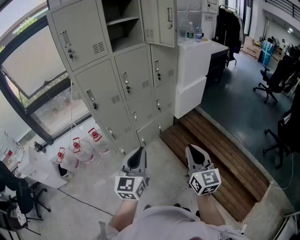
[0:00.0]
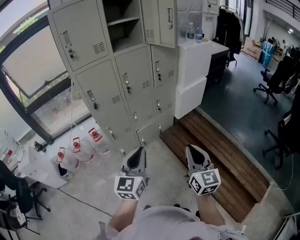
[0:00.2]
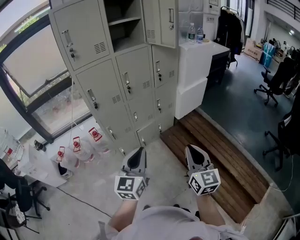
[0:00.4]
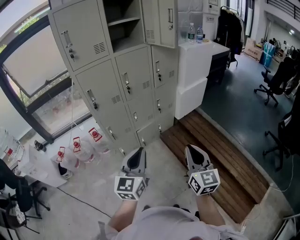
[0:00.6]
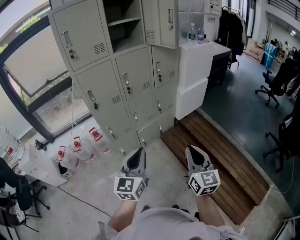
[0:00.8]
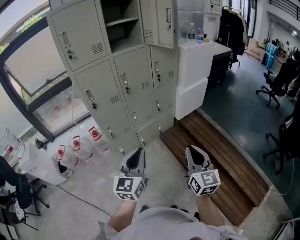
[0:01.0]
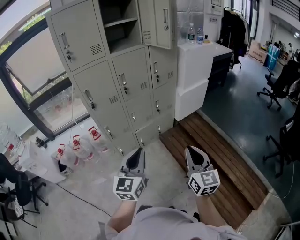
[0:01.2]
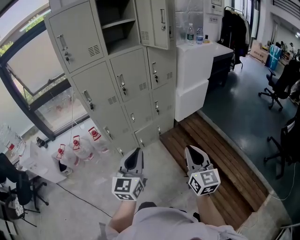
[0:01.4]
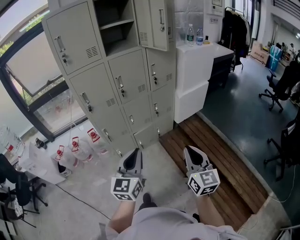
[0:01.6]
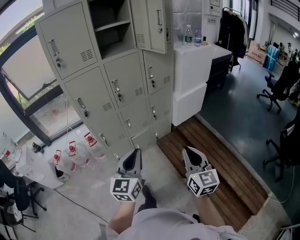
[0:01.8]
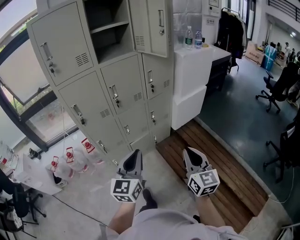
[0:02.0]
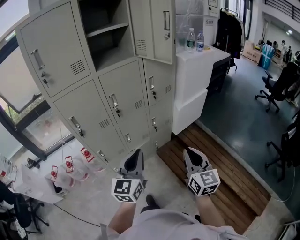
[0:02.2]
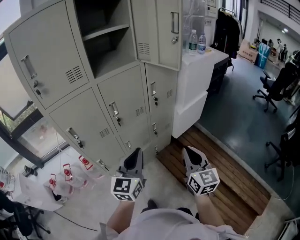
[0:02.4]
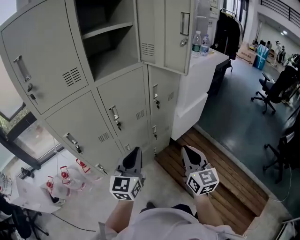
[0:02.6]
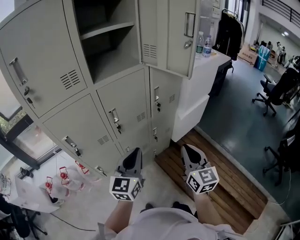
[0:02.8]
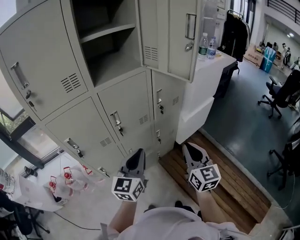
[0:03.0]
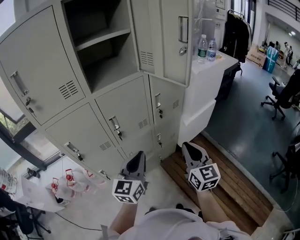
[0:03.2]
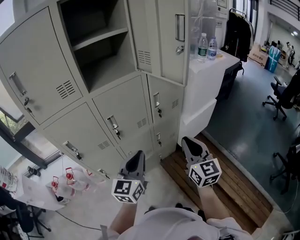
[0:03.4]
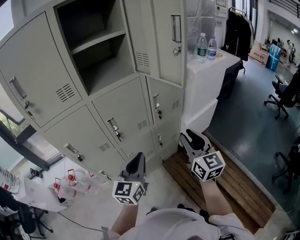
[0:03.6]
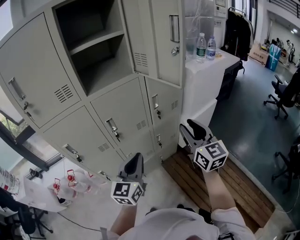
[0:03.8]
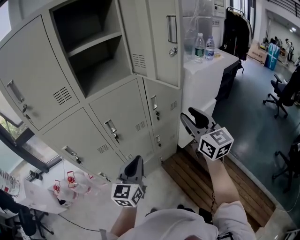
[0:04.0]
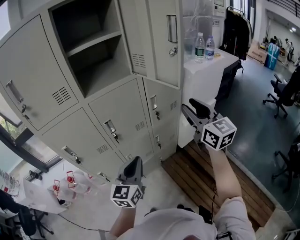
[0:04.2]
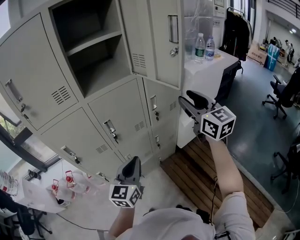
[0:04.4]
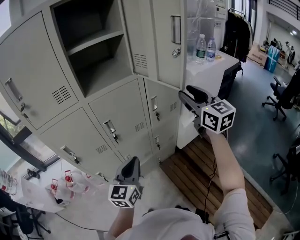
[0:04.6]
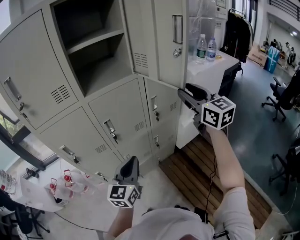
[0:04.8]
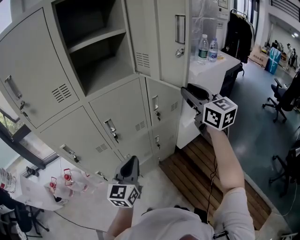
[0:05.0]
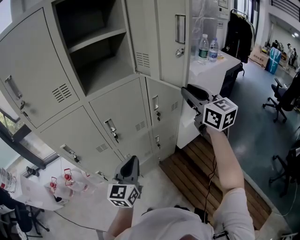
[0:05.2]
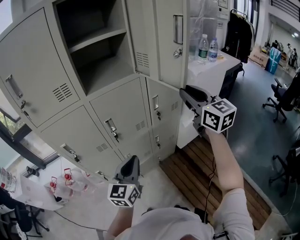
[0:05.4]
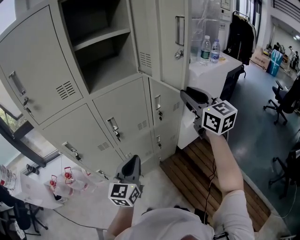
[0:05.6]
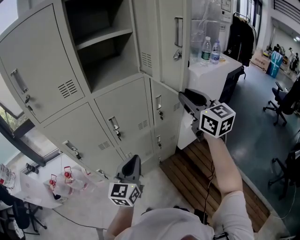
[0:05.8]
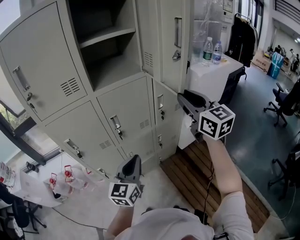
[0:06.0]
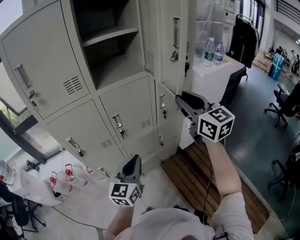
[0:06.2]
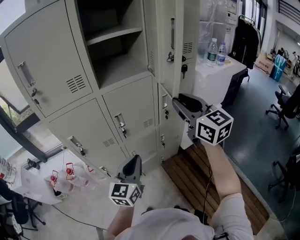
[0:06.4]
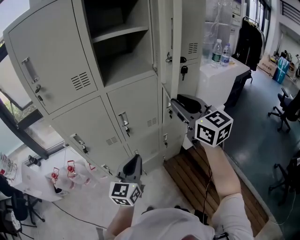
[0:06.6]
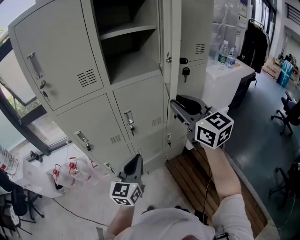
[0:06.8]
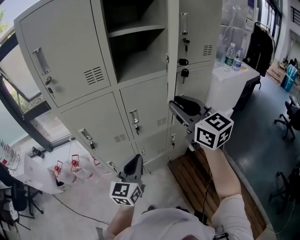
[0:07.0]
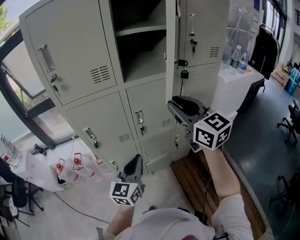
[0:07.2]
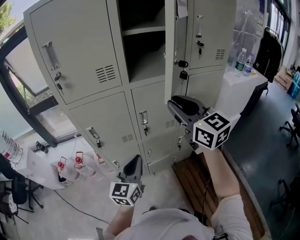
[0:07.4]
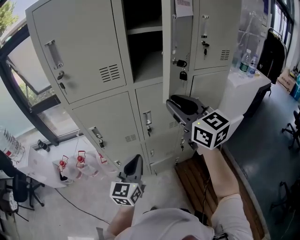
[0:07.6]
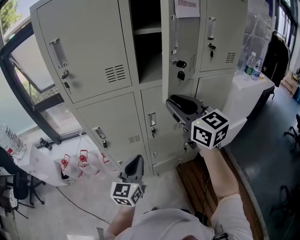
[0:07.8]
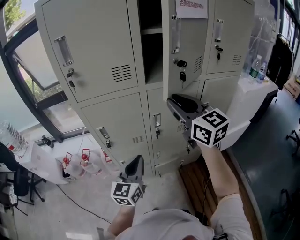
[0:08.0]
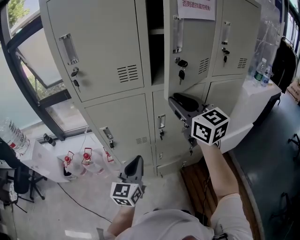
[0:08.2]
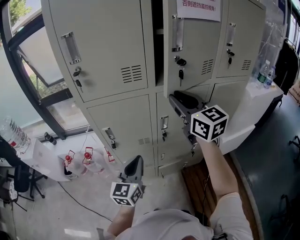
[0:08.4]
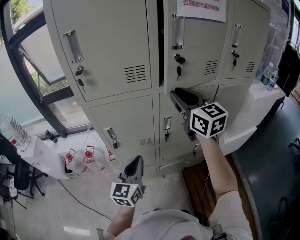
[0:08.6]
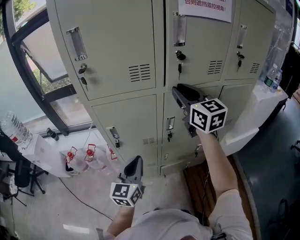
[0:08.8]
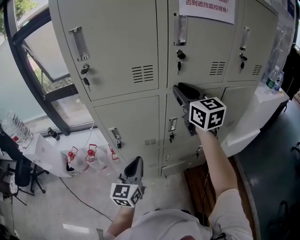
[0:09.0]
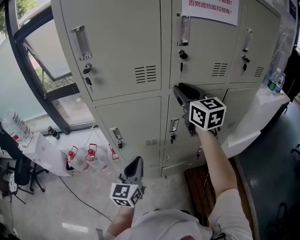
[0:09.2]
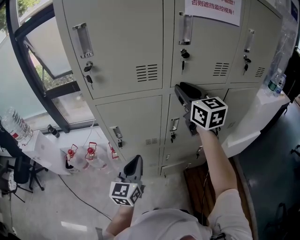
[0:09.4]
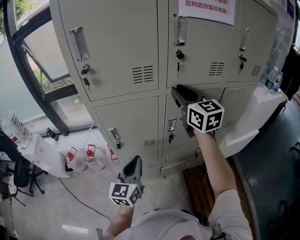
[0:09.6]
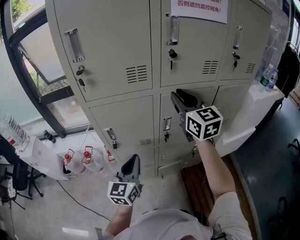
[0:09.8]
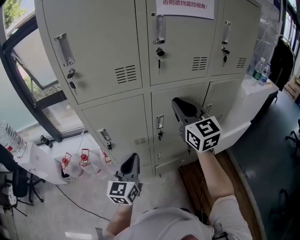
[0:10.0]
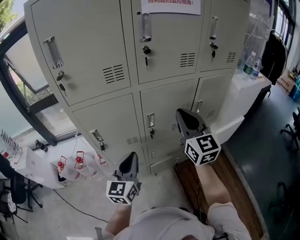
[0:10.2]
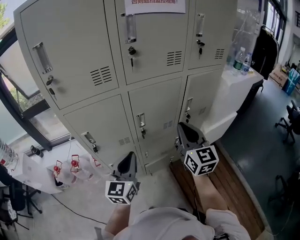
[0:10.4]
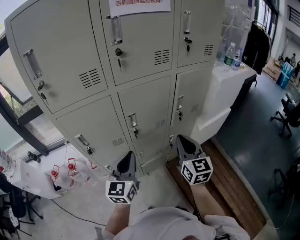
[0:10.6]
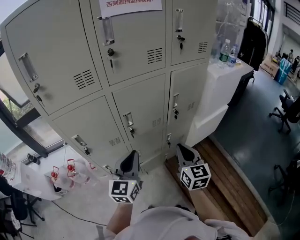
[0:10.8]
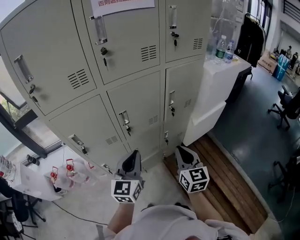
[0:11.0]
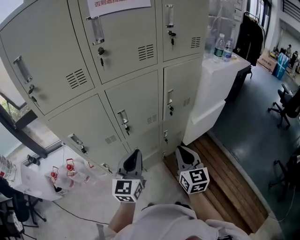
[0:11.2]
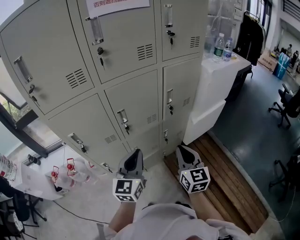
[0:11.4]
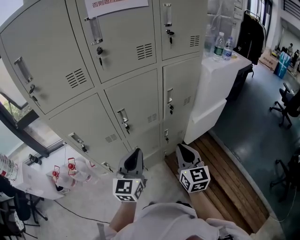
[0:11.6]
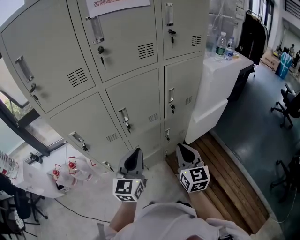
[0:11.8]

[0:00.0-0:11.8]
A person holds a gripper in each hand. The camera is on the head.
0:00.0 to 0:01.4: The grippers both shift to the right by roughly 5 cm.
0:01.4 to 0:03.0: Both grippers travel together forward, about 35 cm.
0:03.0 to 0:04.4: The right gripper travels upward and forward by approximately 20 cm, and opens.
0:04.4 to 0:06.0: The right gripper goes roughly 5 cm to the left.
0:06.0 to 0:07.4: The left gripper moves to the left, about 10 cm. The right gripper moves to the left, roughly 20 cm.
0:07.4 to 0:08.8: The left gripper shifts roughly 10 cm to the left and forward. The right gripper shifts roughly 15 cm forward and to the left.
0:08.8 to 0:10.4: The left gripper goes approximately 10 cm to the right, while the right gripper goes approximately 20 cm backward, to the right and downward, and swivels roughly 20 degrees.
0:10.4 to 0:11.8: The left gripper heads to the right, covering roughly 10 cm. Meanwhile the right gripper heads downward, backward and to the right, covering roughly 15 cm.

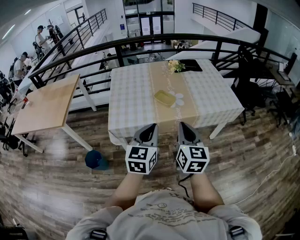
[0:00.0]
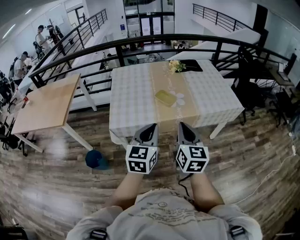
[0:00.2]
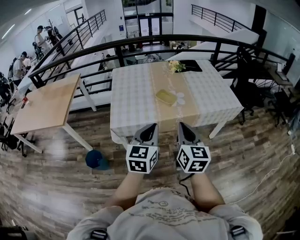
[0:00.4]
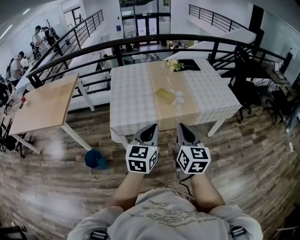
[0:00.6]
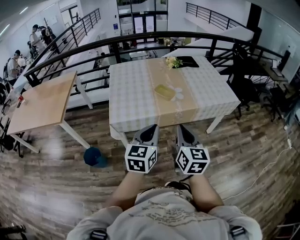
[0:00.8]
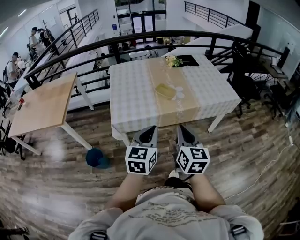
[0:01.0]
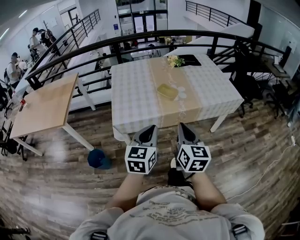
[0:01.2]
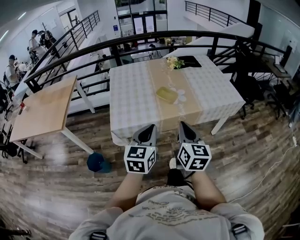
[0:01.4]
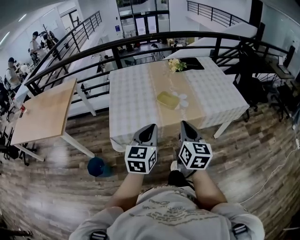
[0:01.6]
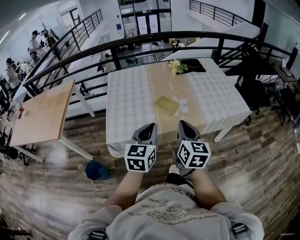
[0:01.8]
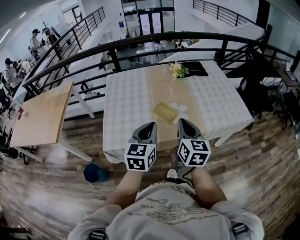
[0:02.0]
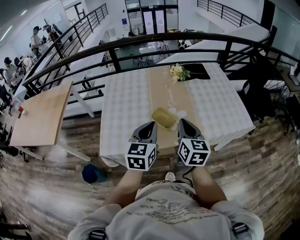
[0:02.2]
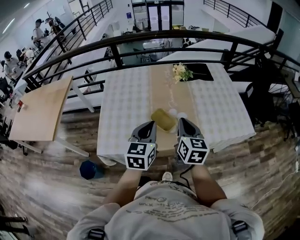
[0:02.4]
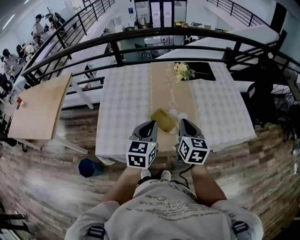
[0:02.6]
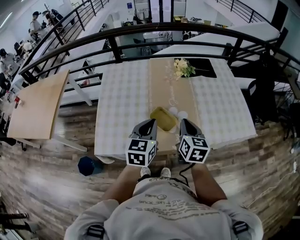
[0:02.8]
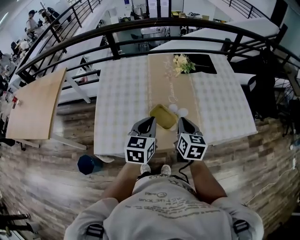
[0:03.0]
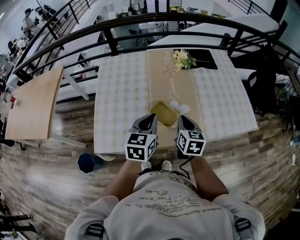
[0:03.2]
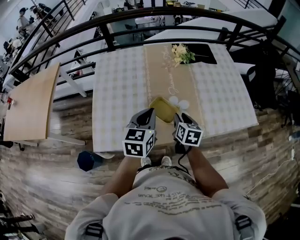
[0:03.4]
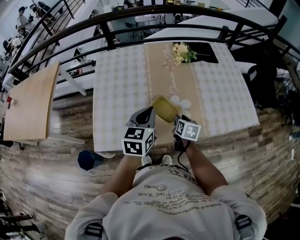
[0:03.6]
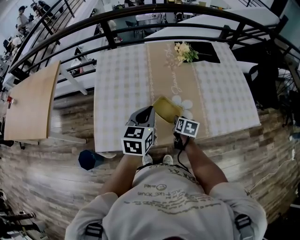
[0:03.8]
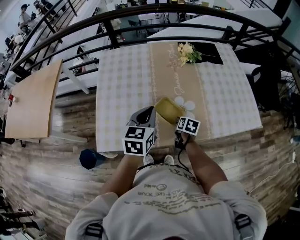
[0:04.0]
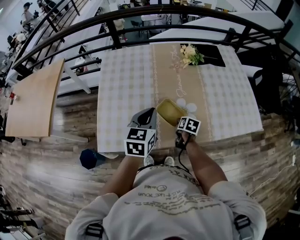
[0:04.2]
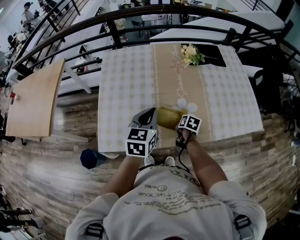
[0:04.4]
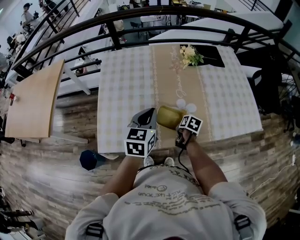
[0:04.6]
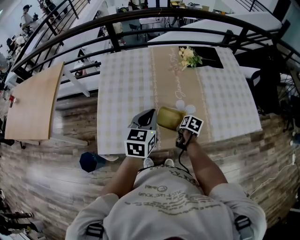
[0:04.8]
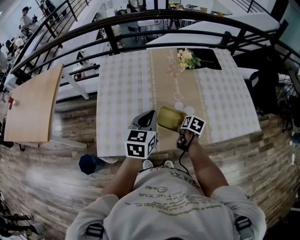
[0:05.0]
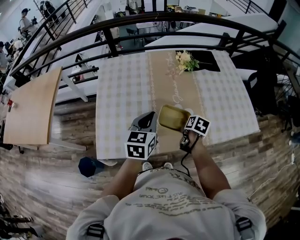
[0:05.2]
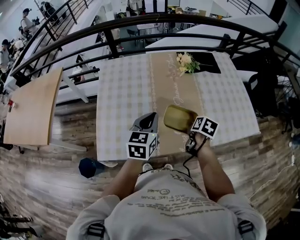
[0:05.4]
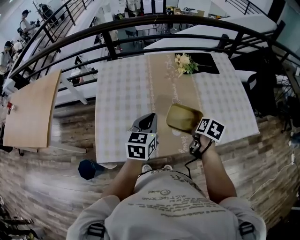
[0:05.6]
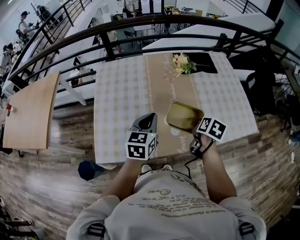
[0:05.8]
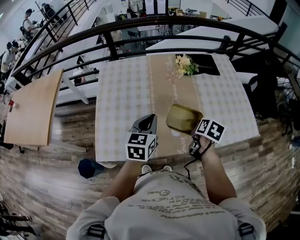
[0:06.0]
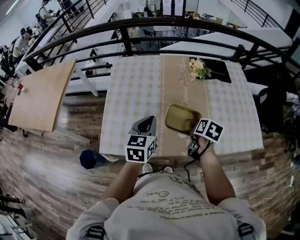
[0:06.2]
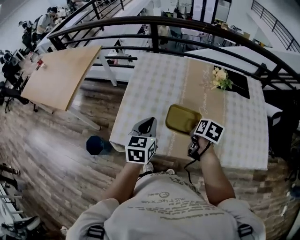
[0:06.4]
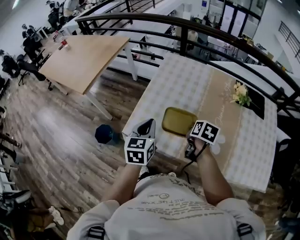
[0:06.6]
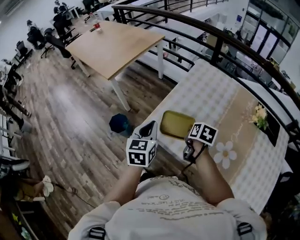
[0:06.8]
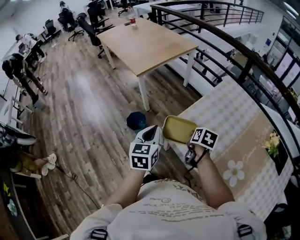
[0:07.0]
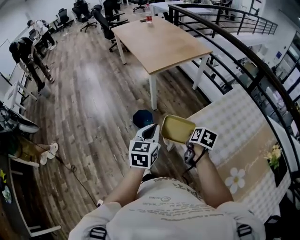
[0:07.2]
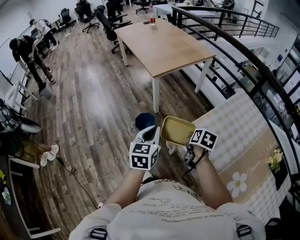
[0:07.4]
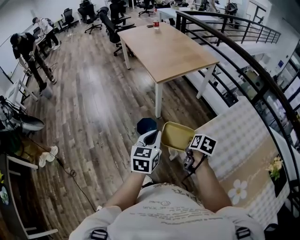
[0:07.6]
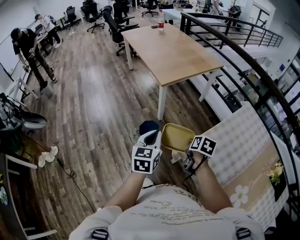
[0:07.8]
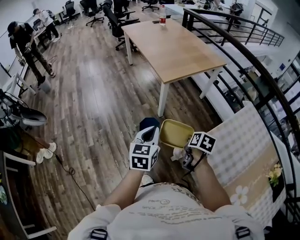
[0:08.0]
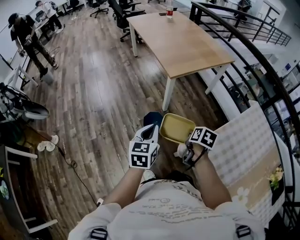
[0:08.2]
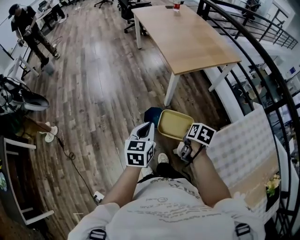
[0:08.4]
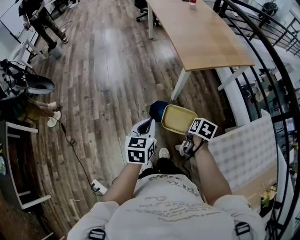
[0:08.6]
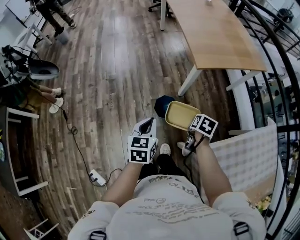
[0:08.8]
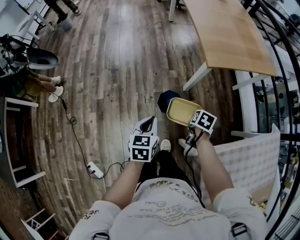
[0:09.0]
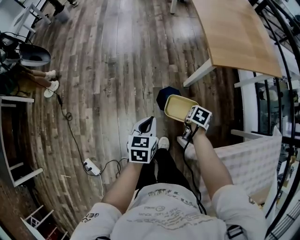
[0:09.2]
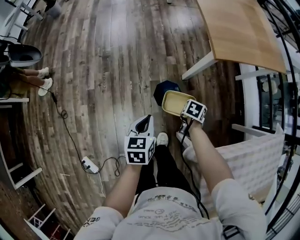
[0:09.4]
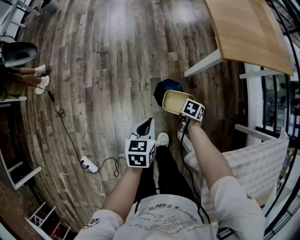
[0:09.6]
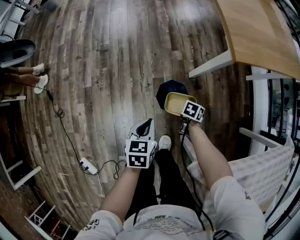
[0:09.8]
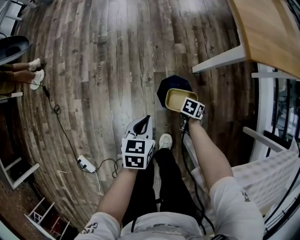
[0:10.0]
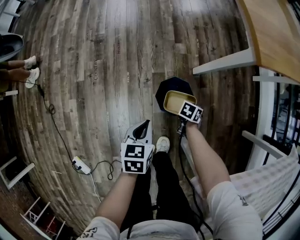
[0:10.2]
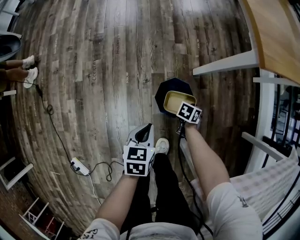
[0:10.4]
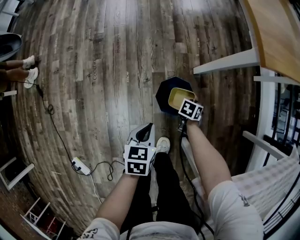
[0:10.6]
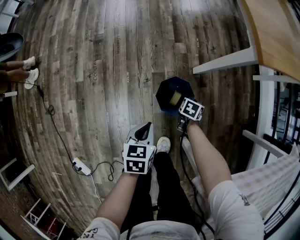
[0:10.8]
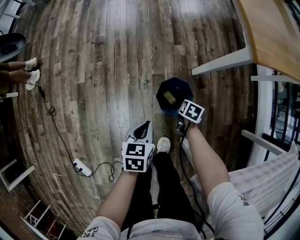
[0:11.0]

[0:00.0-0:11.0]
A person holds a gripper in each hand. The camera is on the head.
0:00.0 to 0:01.6: Both grippers move forward, about 5 cm.
0:01.6 to 0:03.2: Both grippers move forward, roughly 30 cm. The right gripper swivels approximately 20 degrees.
0:03.2 to 0:04.8: The right gripper is displaced downward by some 20 cm, swivels some 40 degrees, and opens, then closes again. Meanwhile the left gripper moves approximately 5 cm.
0:04.8 to 0:06.2: The right gripper is displaced upward by about 15 cm.
0:06.2 to 0:07.8: Both grippers are carried about 60 cm. The right gripper rotates some 60 degrees. The left gripper changes its angle by some 60 degrees.
0:07.8 to 0:09.4: The left gripper shifts some 35 cm downward, to the left and forward, and swivels approximately 40 degrees, while the right gripper shifts roughly 40 cm downward, forward and to the left, and swivels roughly 40 degrees.
0:09.4 to 0:11.0: Both grippers move downward, roughly 25 cm.

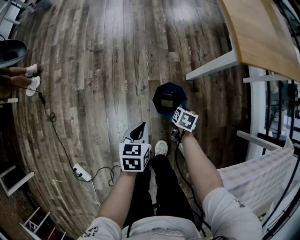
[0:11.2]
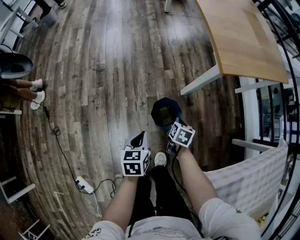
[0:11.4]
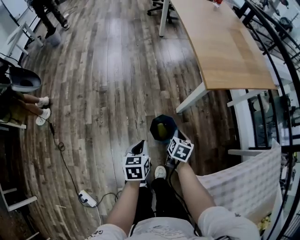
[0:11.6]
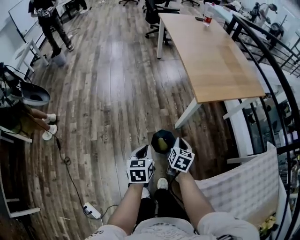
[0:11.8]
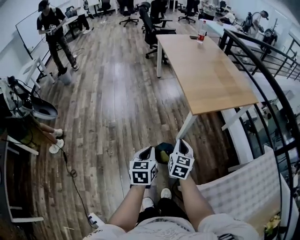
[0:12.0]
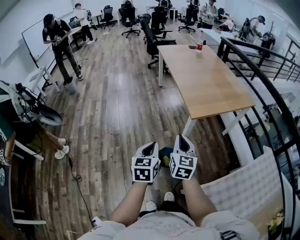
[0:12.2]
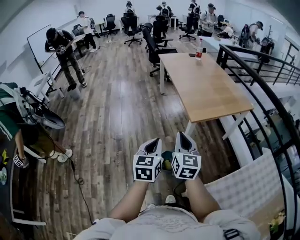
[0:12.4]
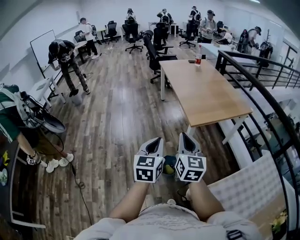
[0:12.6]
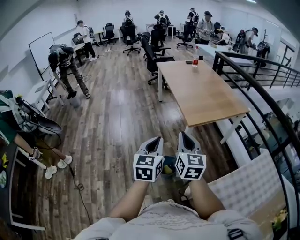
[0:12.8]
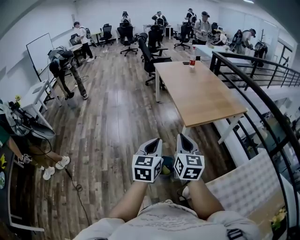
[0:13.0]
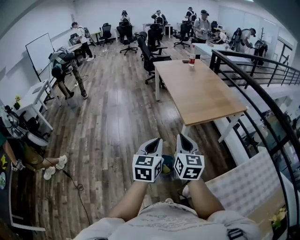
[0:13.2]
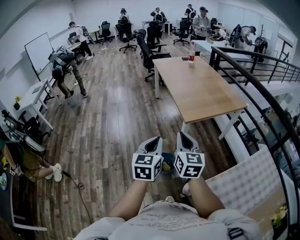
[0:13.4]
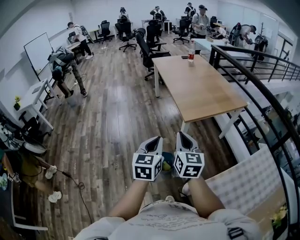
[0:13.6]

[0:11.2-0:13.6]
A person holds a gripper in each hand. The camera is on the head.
0:11.2 to 0:12.4: The two grippers go approximately 60 cm upward. The right gripper tilts its fingers approximately 60 degrees upward, while the left gripper tilts its fingers some 30 degrees upward.
0:12.4 to 0:13.6: The left gripper heads to the right, covering about 5 cm. Meanwhile the right gripper changes place by about 5 cm.
